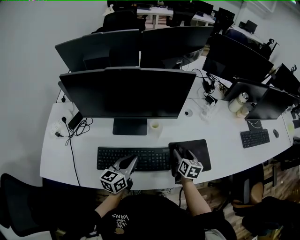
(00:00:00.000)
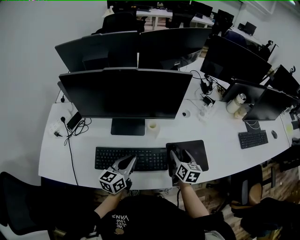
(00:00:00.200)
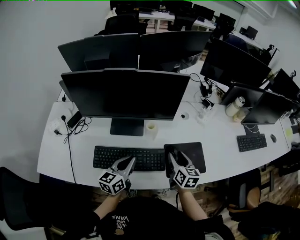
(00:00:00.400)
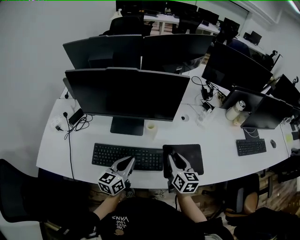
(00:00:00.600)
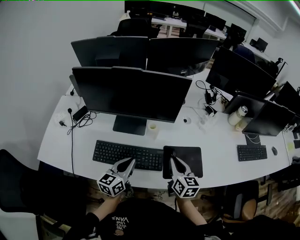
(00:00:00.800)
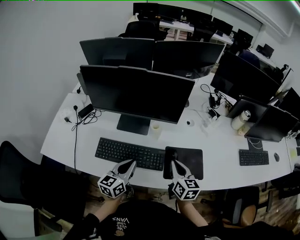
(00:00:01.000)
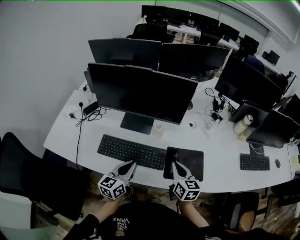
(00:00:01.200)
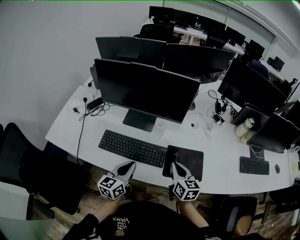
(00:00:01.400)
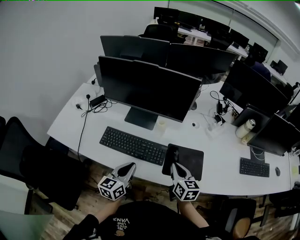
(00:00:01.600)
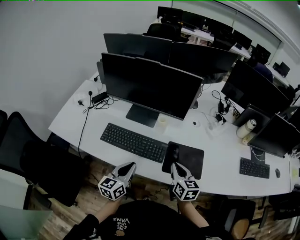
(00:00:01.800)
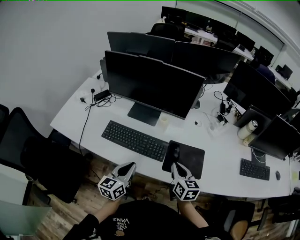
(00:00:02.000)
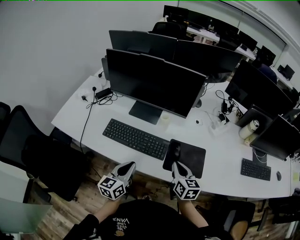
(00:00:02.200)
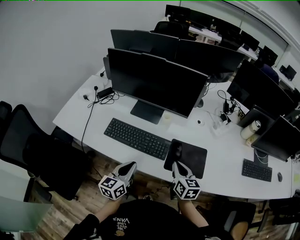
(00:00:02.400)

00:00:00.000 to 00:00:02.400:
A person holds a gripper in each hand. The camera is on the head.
00:00:00.000 to 00:00:01.200: The right gripper moves upward and backward, about 15 cm, swivels about 30 degrees, and closes up, while the left gripper goes approximately 10 cm backward.
00:00:01.200 to 00:00:02.400: The right gripper shifts by some 5 cm; the left gripper heads backward, covering approximately 10 cm.

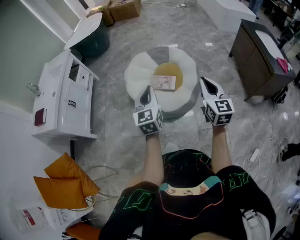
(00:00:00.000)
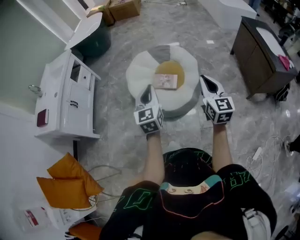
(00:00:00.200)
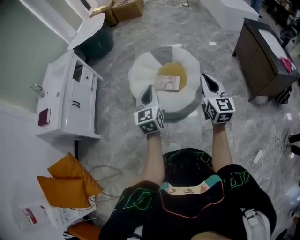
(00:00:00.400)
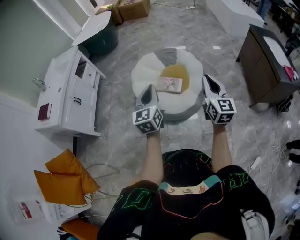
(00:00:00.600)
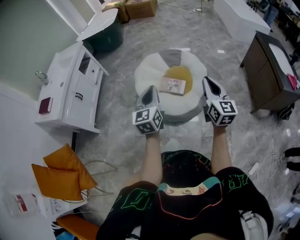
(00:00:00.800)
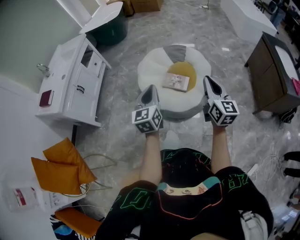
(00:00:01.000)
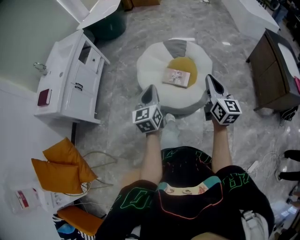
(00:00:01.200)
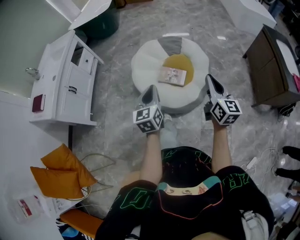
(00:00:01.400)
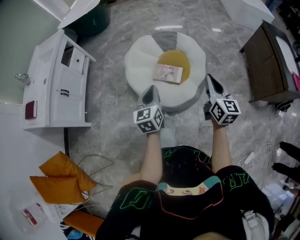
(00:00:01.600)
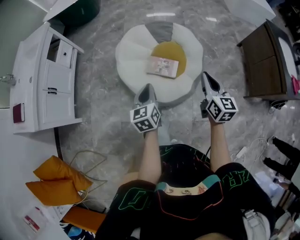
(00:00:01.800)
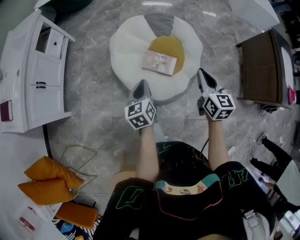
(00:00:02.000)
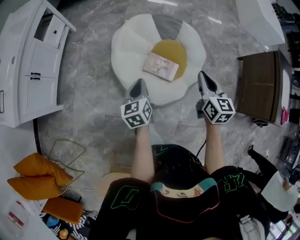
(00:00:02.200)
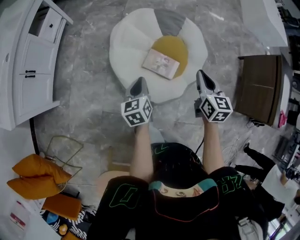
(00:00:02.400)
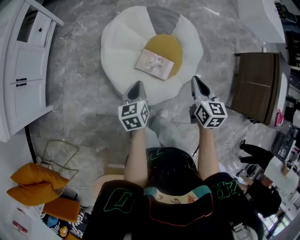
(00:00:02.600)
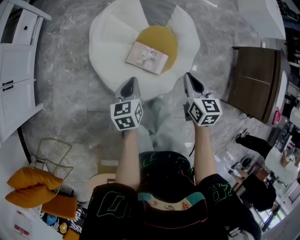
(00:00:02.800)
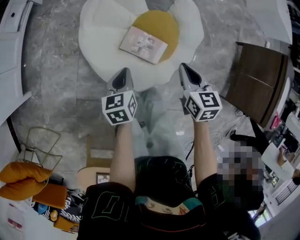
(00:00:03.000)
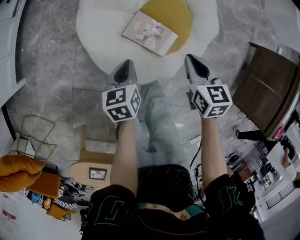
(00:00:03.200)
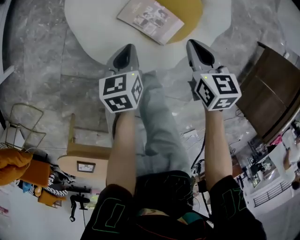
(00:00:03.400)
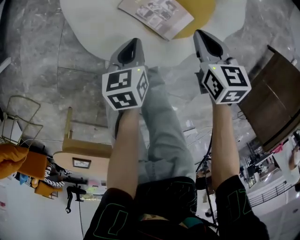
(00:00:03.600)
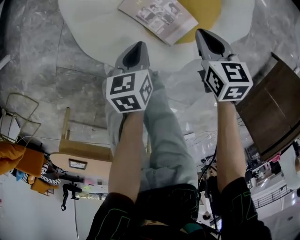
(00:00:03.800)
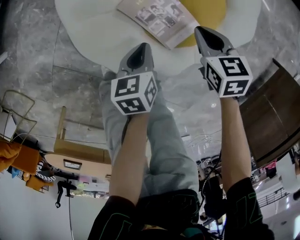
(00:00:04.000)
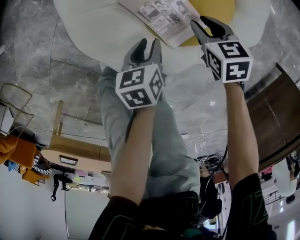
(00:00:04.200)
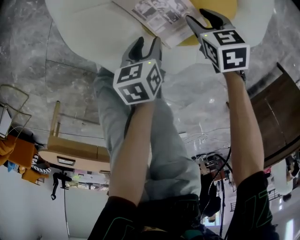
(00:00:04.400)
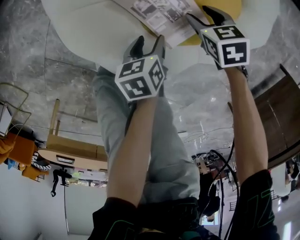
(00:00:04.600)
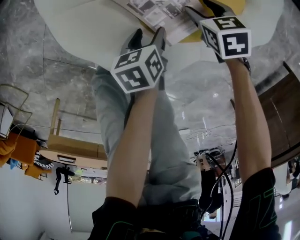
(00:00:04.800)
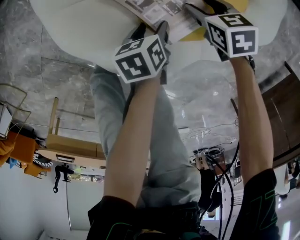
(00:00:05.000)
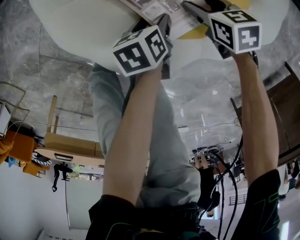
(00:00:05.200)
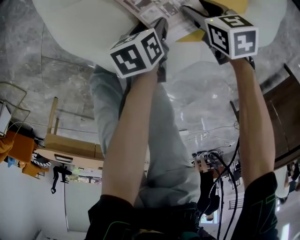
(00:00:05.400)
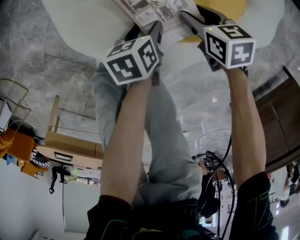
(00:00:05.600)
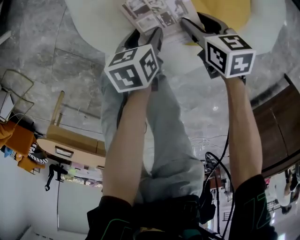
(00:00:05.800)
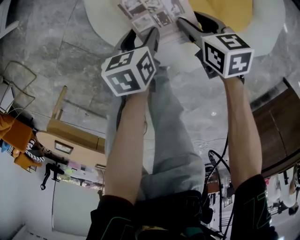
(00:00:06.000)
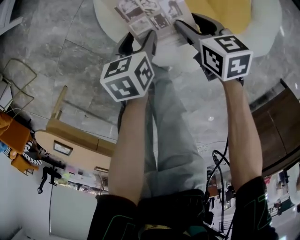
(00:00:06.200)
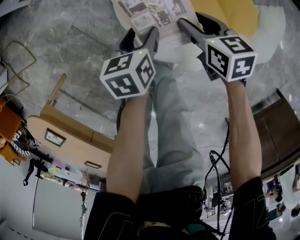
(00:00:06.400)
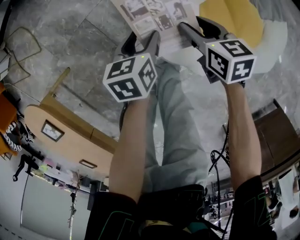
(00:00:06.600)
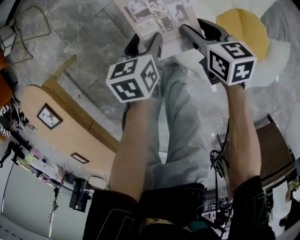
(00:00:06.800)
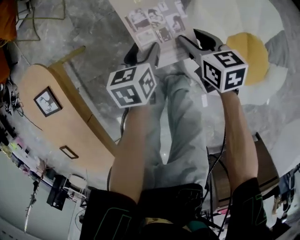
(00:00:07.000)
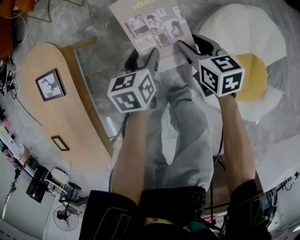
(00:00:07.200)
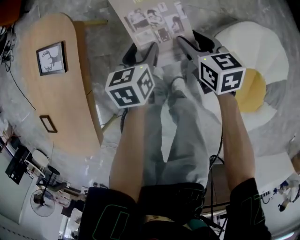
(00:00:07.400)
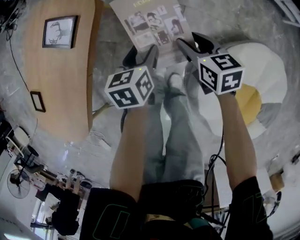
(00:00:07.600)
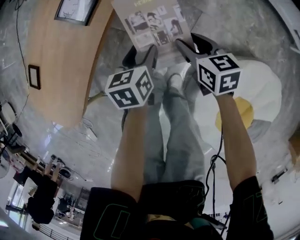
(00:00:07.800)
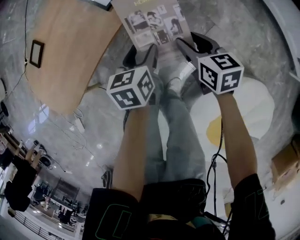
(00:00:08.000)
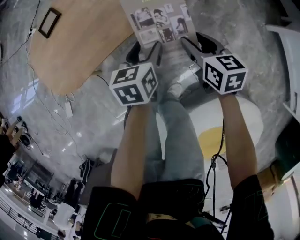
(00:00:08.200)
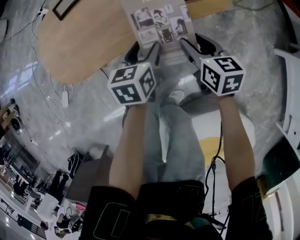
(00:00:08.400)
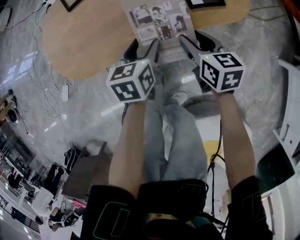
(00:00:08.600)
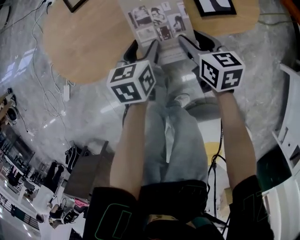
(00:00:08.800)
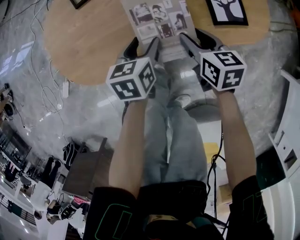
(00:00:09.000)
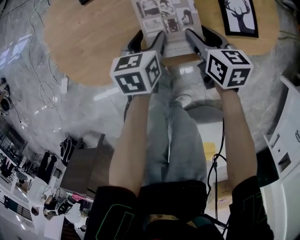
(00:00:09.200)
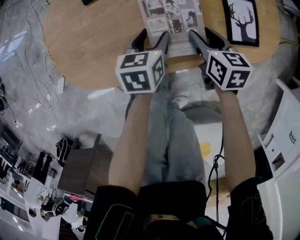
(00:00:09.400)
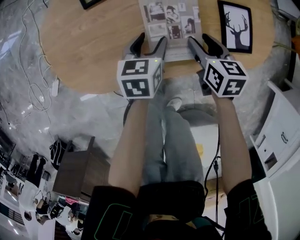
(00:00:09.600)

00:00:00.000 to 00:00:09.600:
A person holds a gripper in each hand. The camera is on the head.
00:00:00.000 to 00:00:01.600: The left gripper is displaced downward and forward by approximately 15 cm, while the right gripper goes some 15 cm forward and downward.
00:00:01.600 to 00:00:03.200: Both grippers travel together downward and forward, approximately 40 cm. The left gripper turns by about 30 degrees. Meanwhile the right gripper points its fingers approximately 40 degrees further downward.
00:00:03.200 to 00:00:04.800: The right gripper moves downward, approximately 35 cm, changes its angle by roughly 40 degrees, and opens its fingers. Meanwhile the left gripper shifts about 30 cm downward and to the right, changes its angle by roughly 30 degrees, and opens its fingers.
00:00:04.800 to 00:00:06.400: The grippers both shift to the left and upward by about 25 cm. The right gripper changes its angle by some 20 degrees.
00:00:06.400 to 00:00:08.000: Both grippers are carried some 50 cm. The left gripper rotates roughly 80 degrees. The right gripper turns by about 80 degrees.
00:00:08.000 to 00:00:09.600: The left gripper changes place by some 35 cm, and turns by roughly 30 degrees. The right gripper changes place by roughly 40 cm, and swivels roughly 30 degrees.

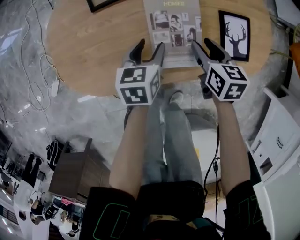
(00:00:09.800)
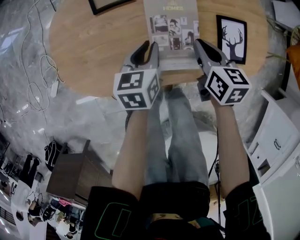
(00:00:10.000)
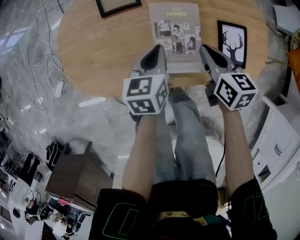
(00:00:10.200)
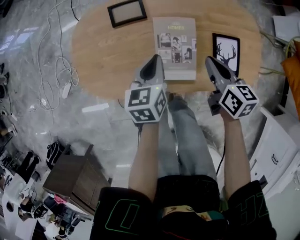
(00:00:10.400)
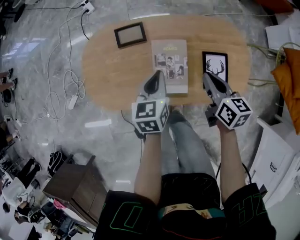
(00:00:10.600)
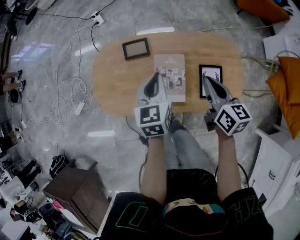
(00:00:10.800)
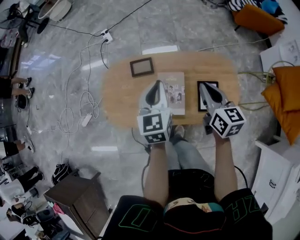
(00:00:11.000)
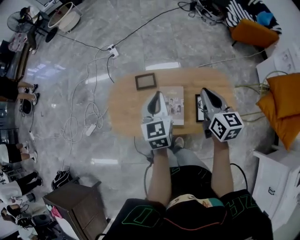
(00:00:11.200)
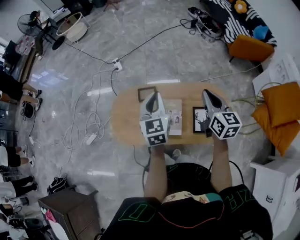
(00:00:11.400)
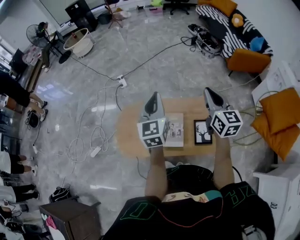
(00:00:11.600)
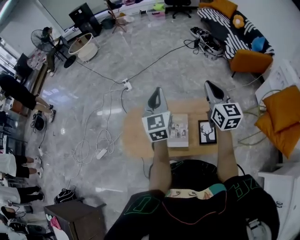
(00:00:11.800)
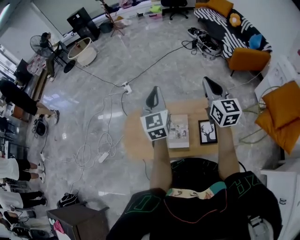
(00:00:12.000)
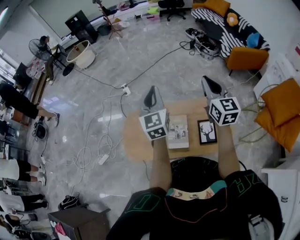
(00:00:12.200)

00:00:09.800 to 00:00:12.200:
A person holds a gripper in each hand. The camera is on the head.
00:00:09.800 to 00:00:11.000: The two grippers go approximately 30 cm upward. The right gripper changes its angle by about 30 degrees, and closes its fingers; the left gripper rotates approximately 30 degrees, and closes its fingers.
00:00:11.000 to 00:00:12.200: The two grippers go approximately 25 cm upward. The left gripper swivels roughly 30 degrees. The right gripper swivels roughly 30 degrees.

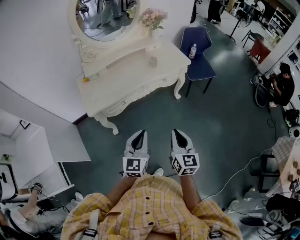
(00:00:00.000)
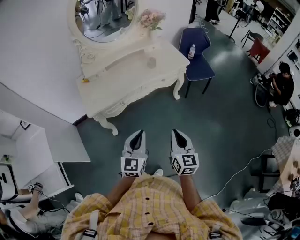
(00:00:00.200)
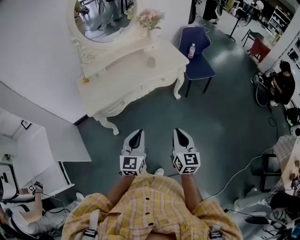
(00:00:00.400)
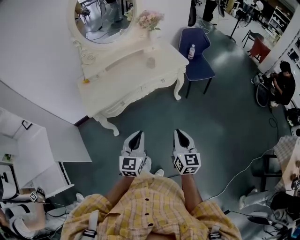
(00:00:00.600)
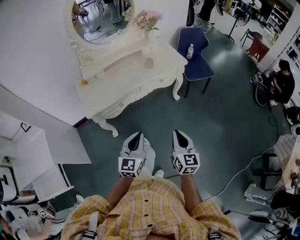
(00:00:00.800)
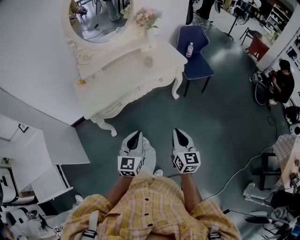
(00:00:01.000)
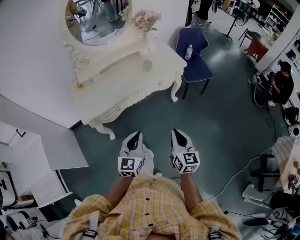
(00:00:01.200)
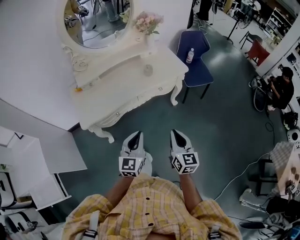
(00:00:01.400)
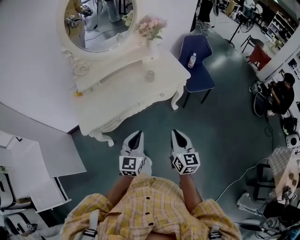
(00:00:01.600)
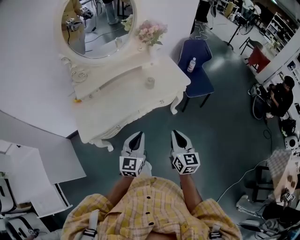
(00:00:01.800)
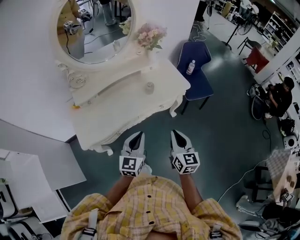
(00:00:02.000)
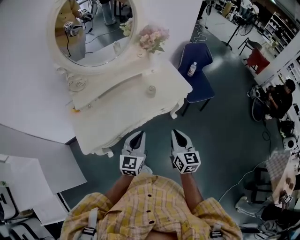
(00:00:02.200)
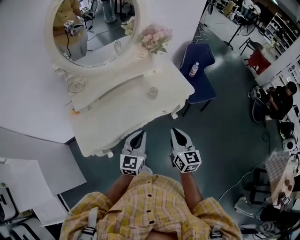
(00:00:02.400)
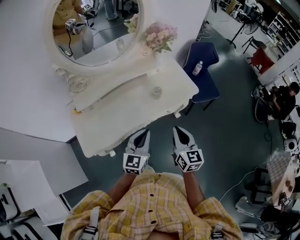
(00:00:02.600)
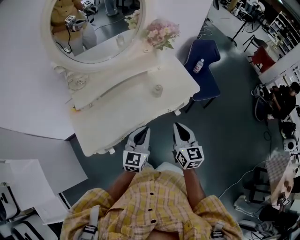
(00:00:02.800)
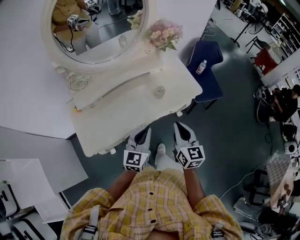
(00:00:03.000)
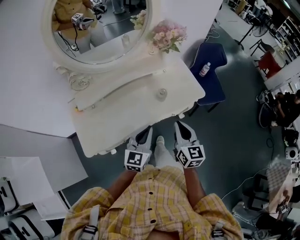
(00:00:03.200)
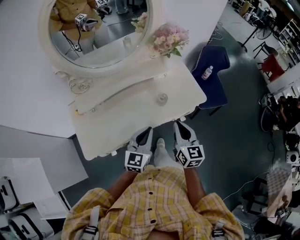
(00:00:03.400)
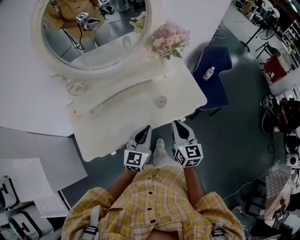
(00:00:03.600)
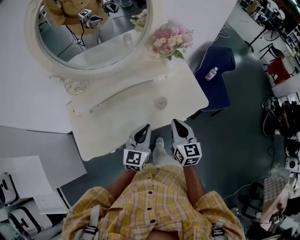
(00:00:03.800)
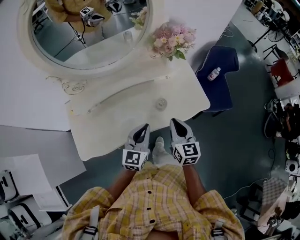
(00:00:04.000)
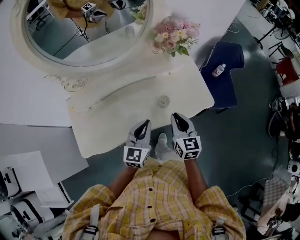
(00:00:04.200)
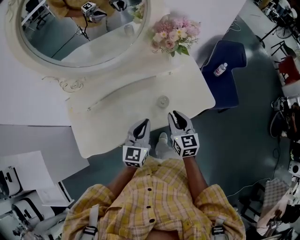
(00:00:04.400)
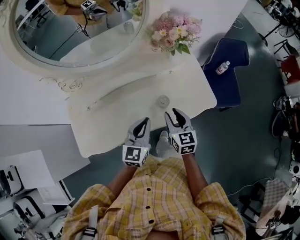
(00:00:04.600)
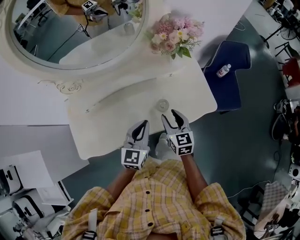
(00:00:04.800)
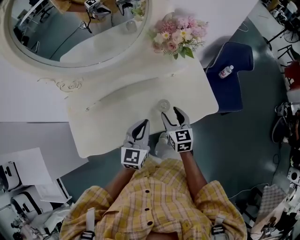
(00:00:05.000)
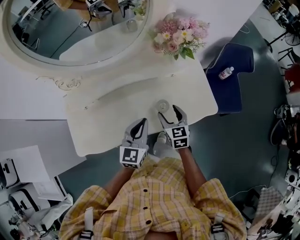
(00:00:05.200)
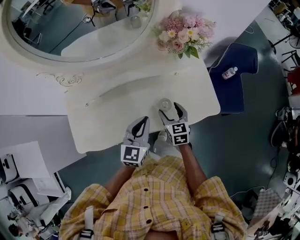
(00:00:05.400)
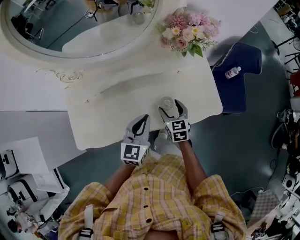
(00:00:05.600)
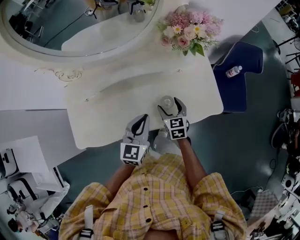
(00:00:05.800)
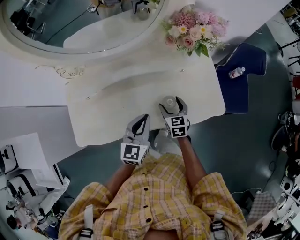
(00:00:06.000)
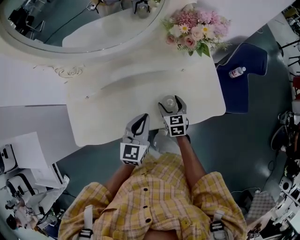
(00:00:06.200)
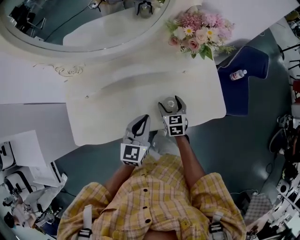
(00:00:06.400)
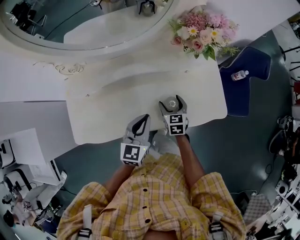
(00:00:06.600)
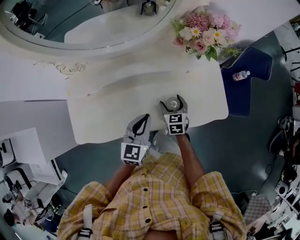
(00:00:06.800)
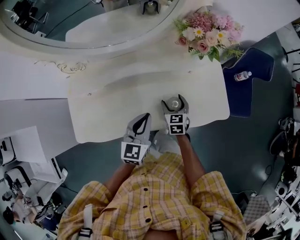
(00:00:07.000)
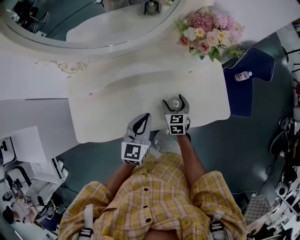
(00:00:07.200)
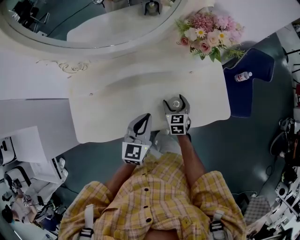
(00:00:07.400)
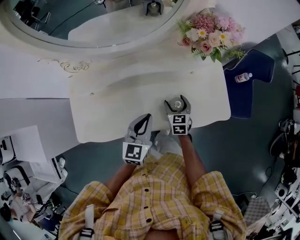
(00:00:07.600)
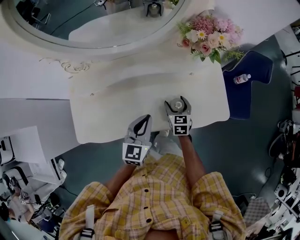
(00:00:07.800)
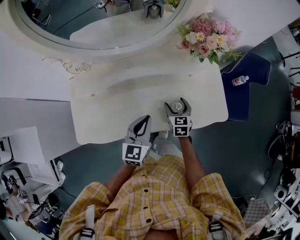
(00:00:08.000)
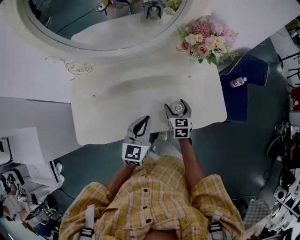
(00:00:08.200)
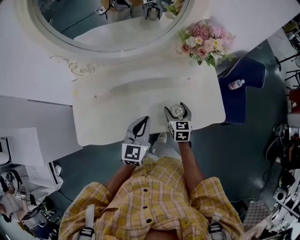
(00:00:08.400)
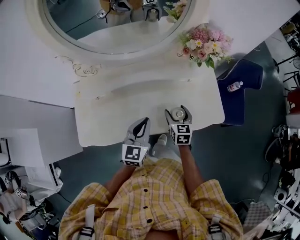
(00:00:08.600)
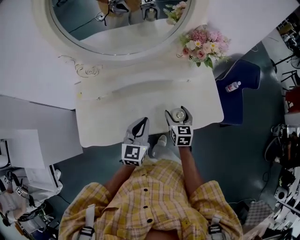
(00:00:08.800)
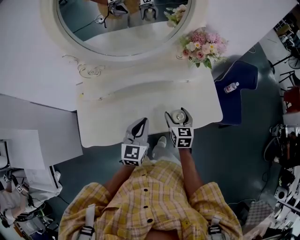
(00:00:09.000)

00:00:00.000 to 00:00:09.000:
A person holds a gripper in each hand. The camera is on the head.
00:00:00.000 to 00:00:01.600: Both grippers travel together forward, approximately 15 cm.
00:00:01.600 to 00:00:03.000: Both grippers travel together forward, approximately 20 cm.
00:00:03.000 to 00:00:04.400: The right gripper travels forward and downward by some 20 cm, while the left gripper goes roughly 15 cm forward.
00:00:04.400 to 00:00:06.000: The right gripper shifts about 15 cm downward and forward, and opens; the left gripper changes place by about 5 cm.
00:00:06.000 to 00:00:07.600: The grippers make only small movements.
00:00:07.600 to 00:00:09.000: The left gripper travels upward by approximately 5 cm. The right gripper travels upward and backward by approximately 15 cm.
